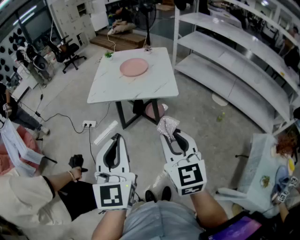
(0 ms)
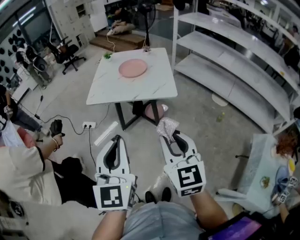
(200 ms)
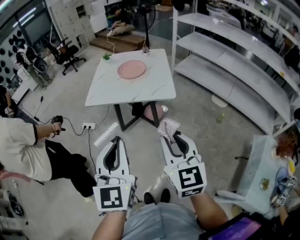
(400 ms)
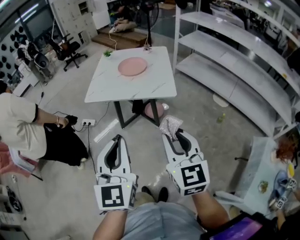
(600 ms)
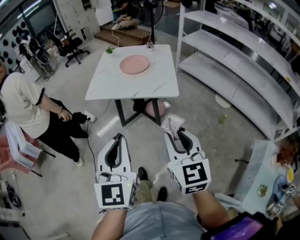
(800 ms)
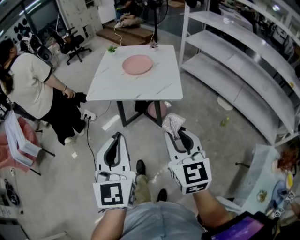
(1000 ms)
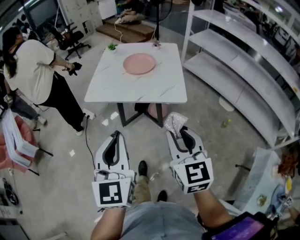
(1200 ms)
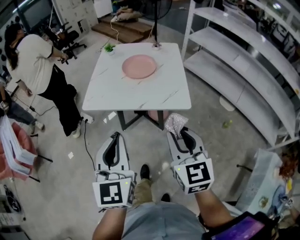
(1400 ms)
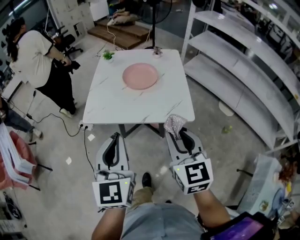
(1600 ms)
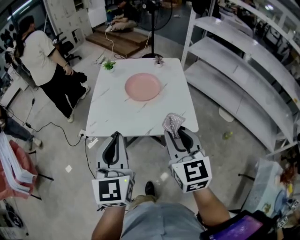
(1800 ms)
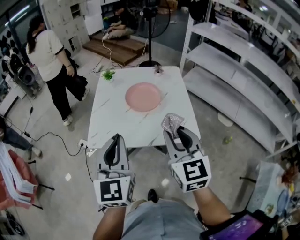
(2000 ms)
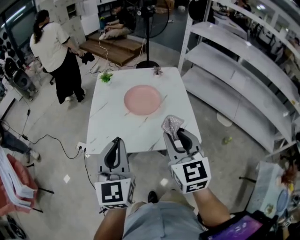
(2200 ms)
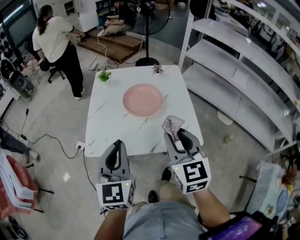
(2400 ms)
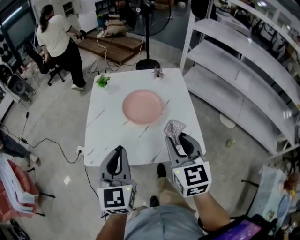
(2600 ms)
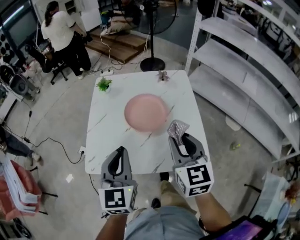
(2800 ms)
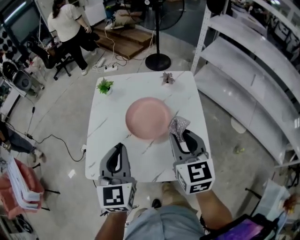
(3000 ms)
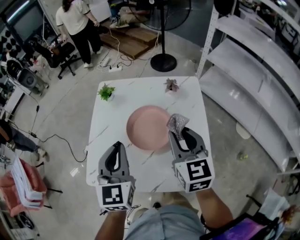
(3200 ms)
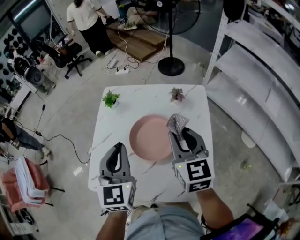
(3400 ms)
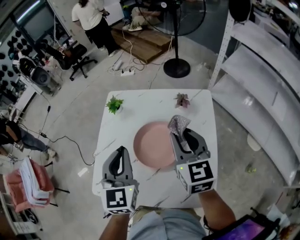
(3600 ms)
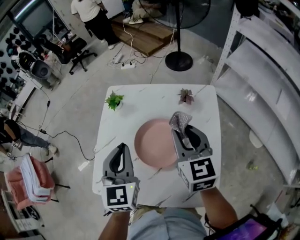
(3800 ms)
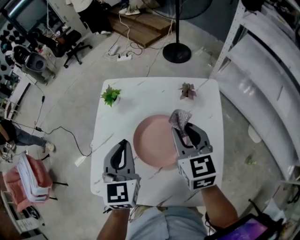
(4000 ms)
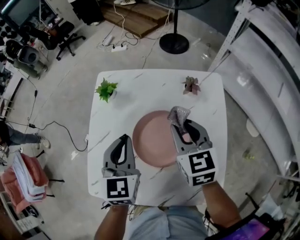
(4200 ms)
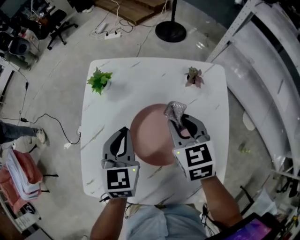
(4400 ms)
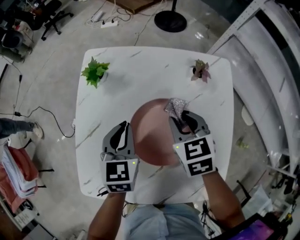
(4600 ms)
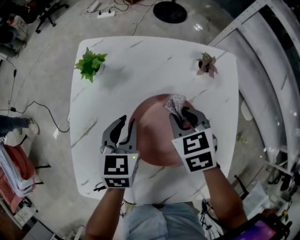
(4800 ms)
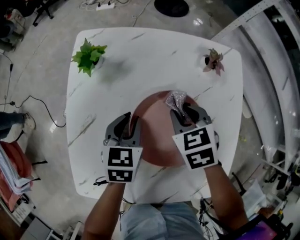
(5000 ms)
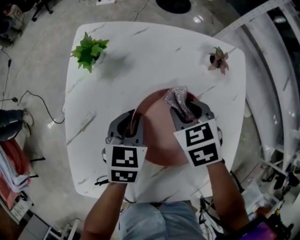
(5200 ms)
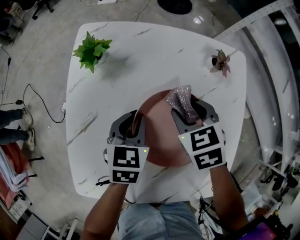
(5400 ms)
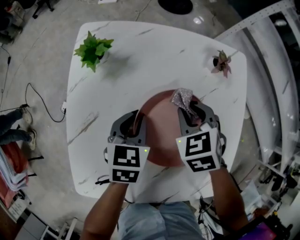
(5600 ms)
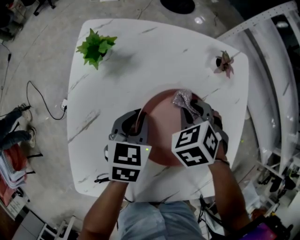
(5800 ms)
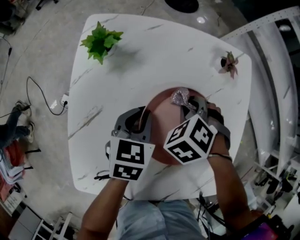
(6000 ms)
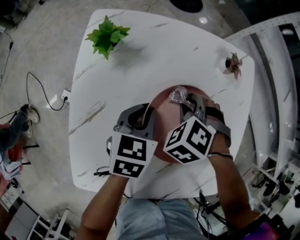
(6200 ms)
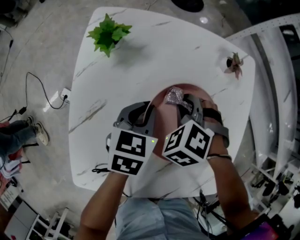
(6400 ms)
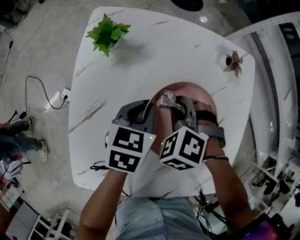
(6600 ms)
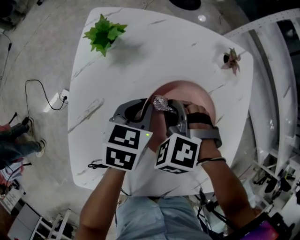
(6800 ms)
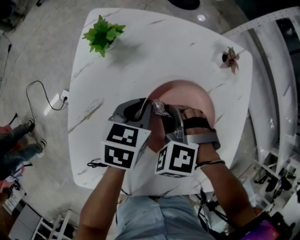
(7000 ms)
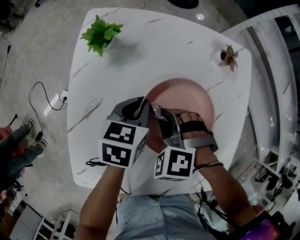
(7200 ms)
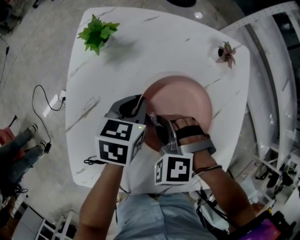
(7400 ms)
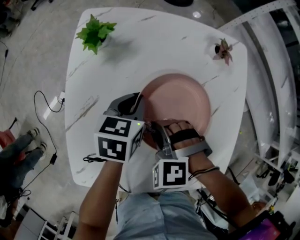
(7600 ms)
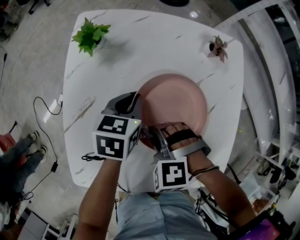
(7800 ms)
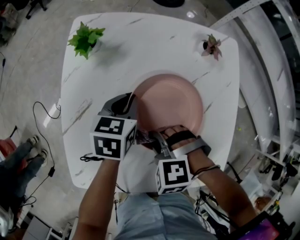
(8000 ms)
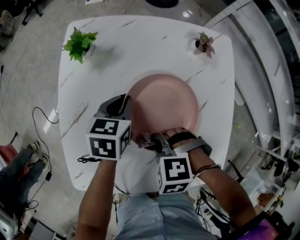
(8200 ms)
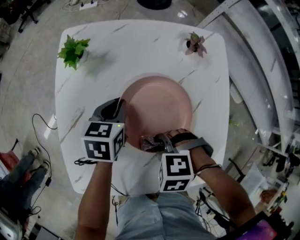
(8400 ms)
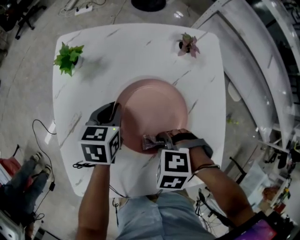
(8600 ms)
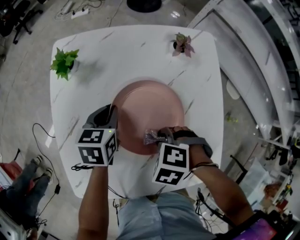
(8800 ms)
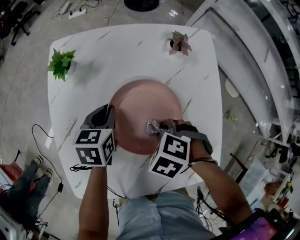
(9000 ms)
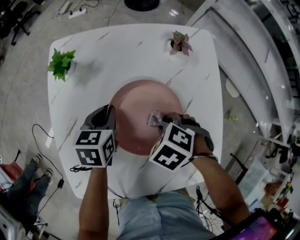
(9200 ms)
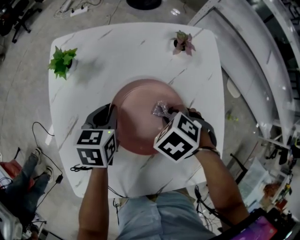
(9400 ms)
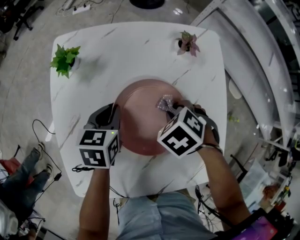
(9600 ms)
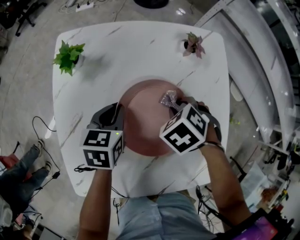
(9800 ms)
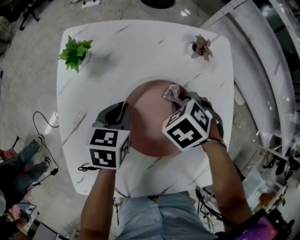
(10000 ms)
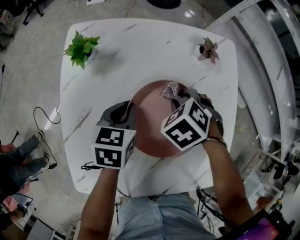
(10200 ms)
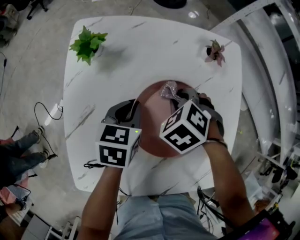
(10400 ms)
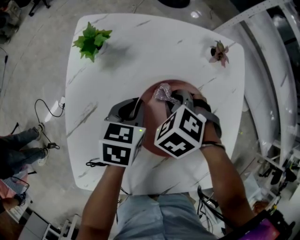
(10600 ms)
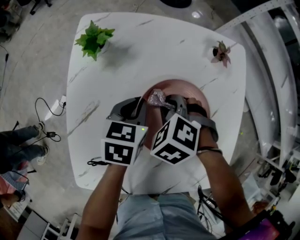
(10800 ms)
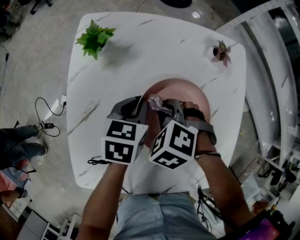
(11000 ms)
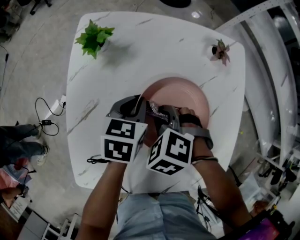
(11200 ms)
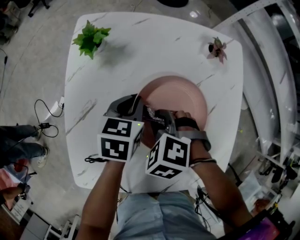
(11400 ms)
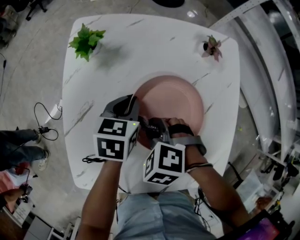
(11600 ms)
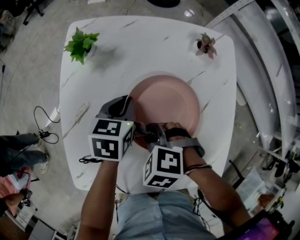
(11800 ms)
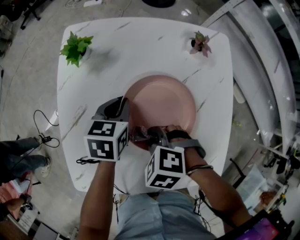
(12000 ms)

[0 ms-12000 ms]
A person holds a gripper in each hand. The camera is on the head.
0 ms to 1600 ms: The two grippers go about 25 cm forward.
1600 ms to 3000 ms: The grippers both shift forward by roughly 30 cm.
3000 ms to 4400 ms: Both grippers travel together forward and downward, approximately 25 cm. The right gripper rotates approximately 20 degrees.
4400 ms to 6000 ms: Both grippers move downward, some 15 cm. The right gripper angles its fingers downward, by about 30 degrees, and opens, then closes again; the left gripper turns by about 30 degrees.
6000 ms to 7600 ms: The right gripper heads backward and to the left, covering some 15 cm, and rotates roughly 40 degrees.
7600 ms to 9000 ms: The right gripper moves some 10 cm, and changes its angle by approximately 40 degrees.
9000 ms to 10400 ms: The right gripper changes place by roughly 10 cm.
10400 ms to 12000 ms: The right gripper shifts by roughly 15 cm, and changes its angle by some 20 degrees.

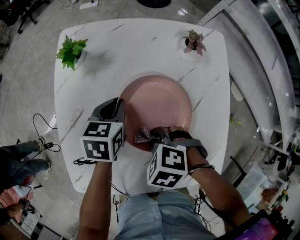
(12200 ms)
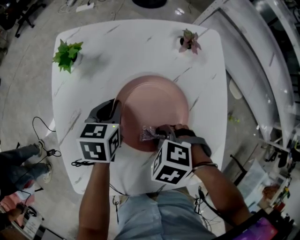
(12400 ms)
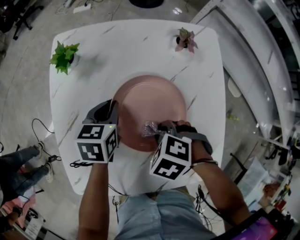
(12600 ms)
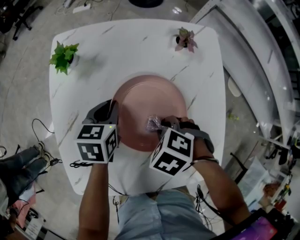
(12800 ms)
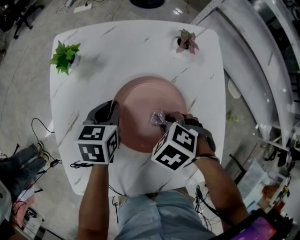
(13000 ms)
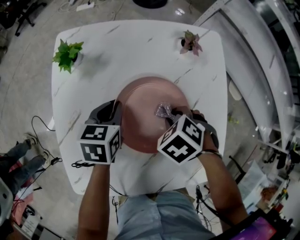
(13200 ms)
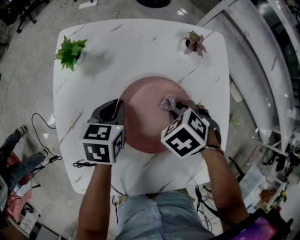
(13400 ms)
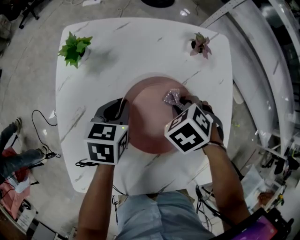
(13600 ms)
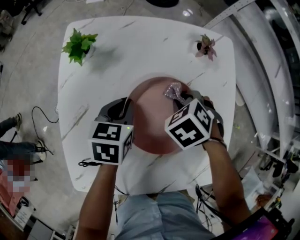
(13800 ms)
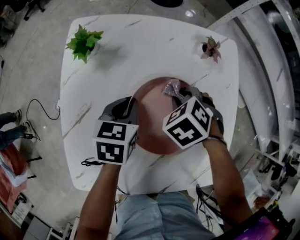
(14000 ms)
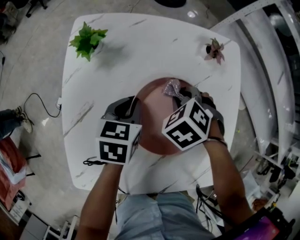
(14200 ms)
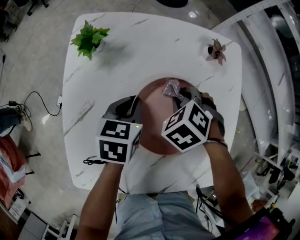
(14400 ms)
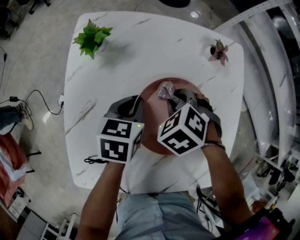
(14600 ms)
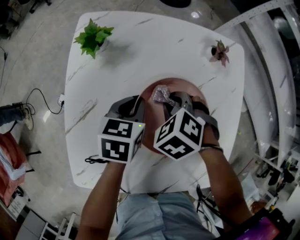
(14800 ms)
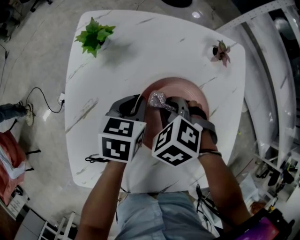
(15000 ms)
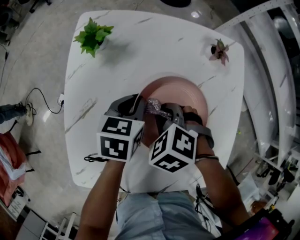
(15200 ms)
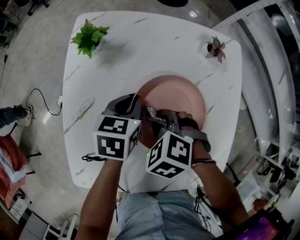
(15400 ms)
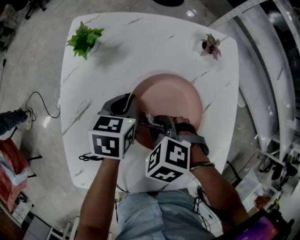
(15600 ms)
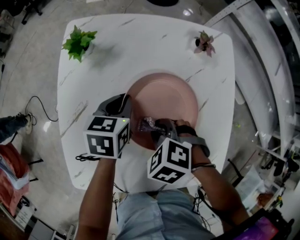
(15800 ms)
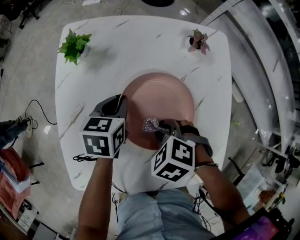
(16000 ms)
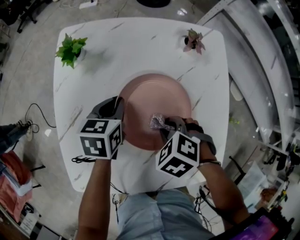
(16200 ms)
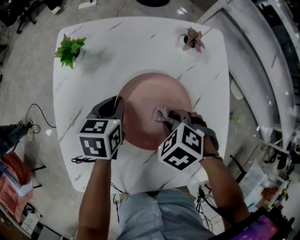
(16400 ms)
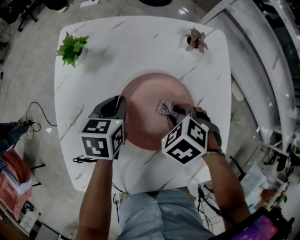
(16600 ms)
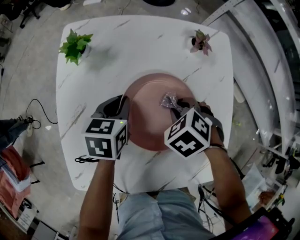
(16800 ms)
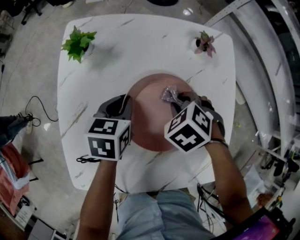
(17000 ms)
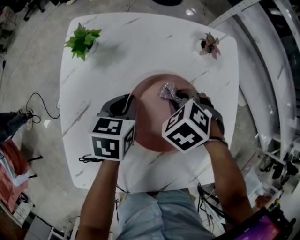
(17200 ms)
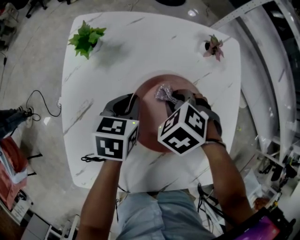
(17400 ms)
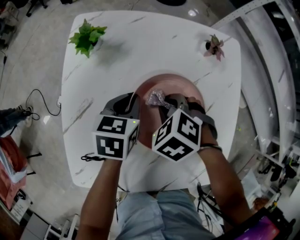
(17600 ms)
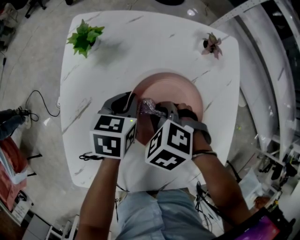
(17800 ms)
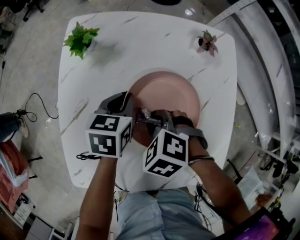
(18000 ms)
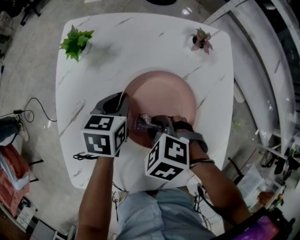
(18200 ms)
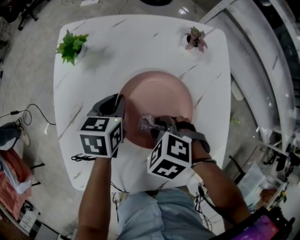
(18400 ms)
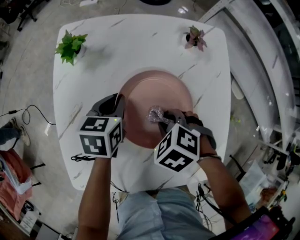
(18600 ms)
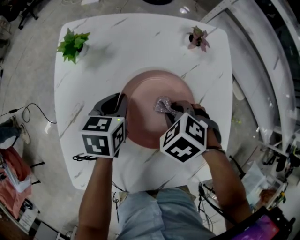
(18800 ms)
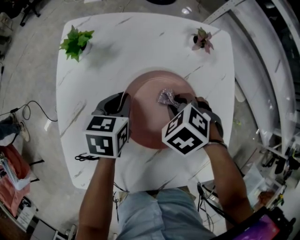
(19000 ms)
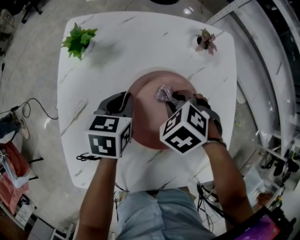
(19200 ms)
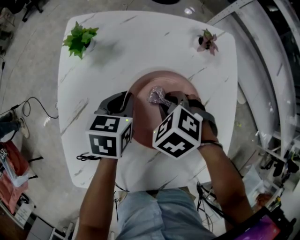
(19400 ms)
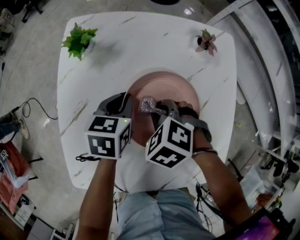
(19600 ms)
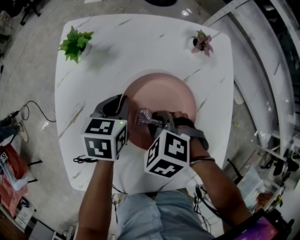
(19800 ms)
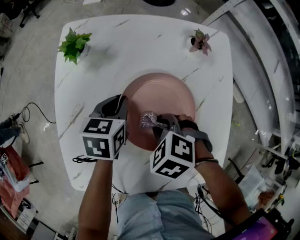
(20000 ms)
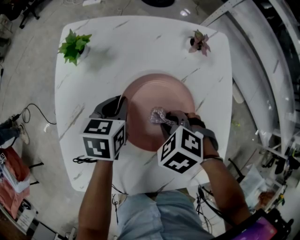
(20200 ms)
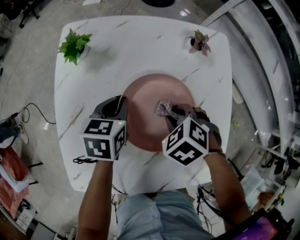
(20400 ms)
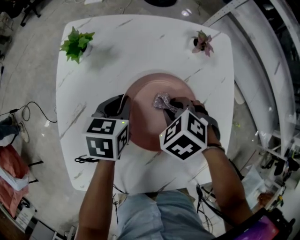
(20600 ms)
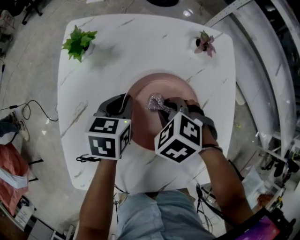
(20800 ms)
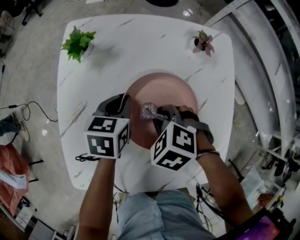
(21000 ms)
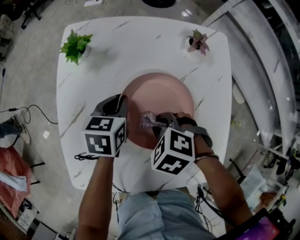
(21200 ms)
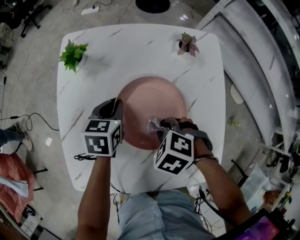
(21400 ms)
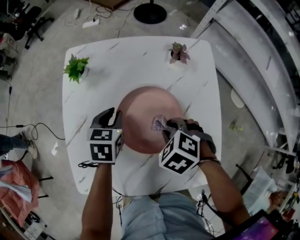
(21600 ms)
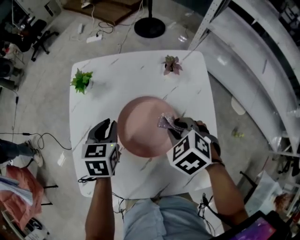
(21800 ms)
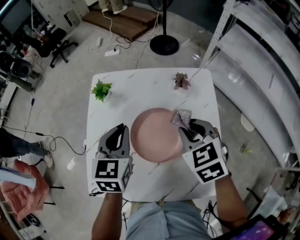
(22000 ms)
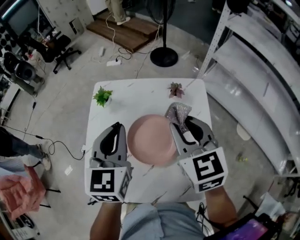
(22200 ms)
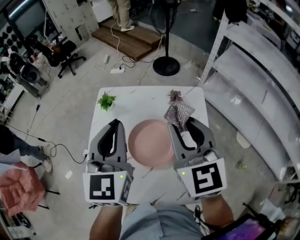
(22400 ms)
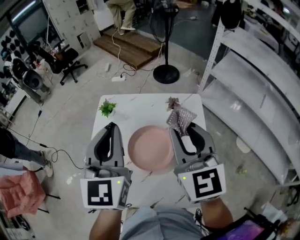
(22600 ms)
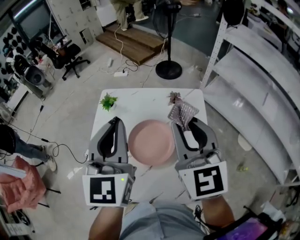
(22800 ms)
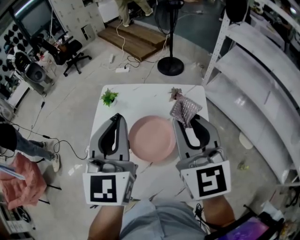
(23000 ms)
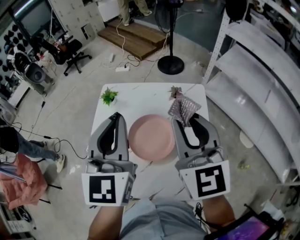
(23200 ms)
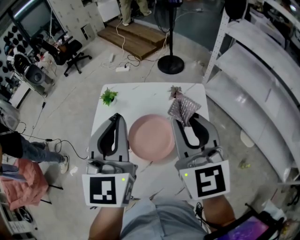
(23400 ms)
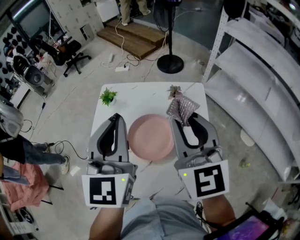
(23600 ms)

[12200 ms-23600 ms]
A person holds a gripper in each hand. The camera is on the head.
12200 ms to 13600 ms: The right gripper ends up about 15 cm from where it was, and turns by roughly 30 degrees.
13600 ms to 15000 ms: The right gripper ends up roughly 10 cm from where it was.
15000 ms to 16400 ms: The right gripper shifts by some 10 cm.
16400 ms to 17800 ms: The right gripper ends up about 10 cm from where it was.
20800 ms to 22200 ms: Both grippers travel together upward, roughly 30 cm. The right gripper points its fingers roughly 50 degrees further upward. The left gripper points its fingers some 30 degrees further upward.
22200 ms to 23600 ms: The grippers both shift upward and backward by roughly 10 cm.

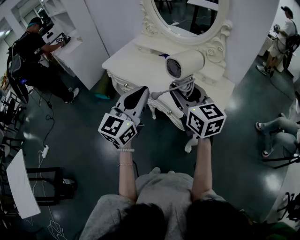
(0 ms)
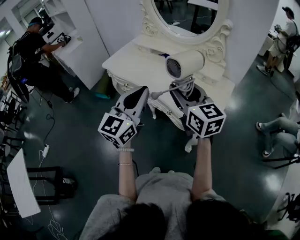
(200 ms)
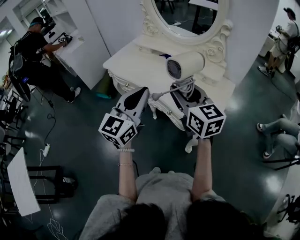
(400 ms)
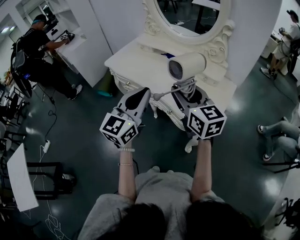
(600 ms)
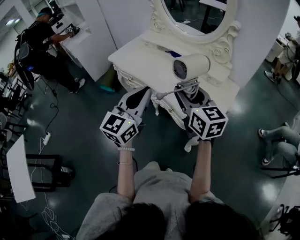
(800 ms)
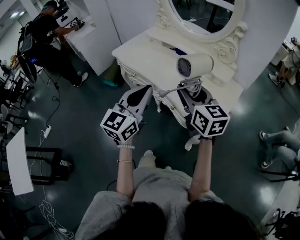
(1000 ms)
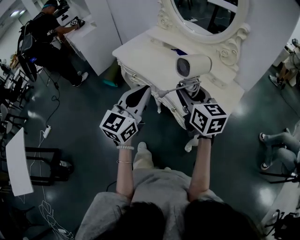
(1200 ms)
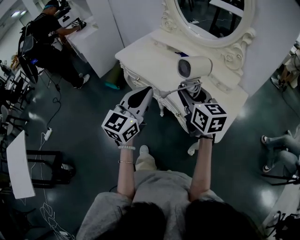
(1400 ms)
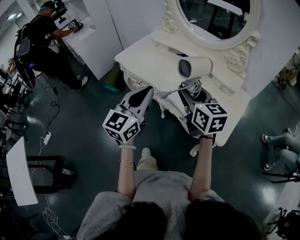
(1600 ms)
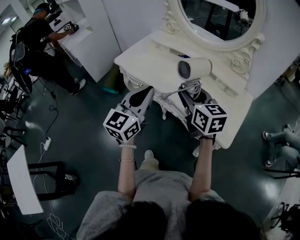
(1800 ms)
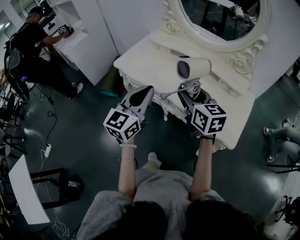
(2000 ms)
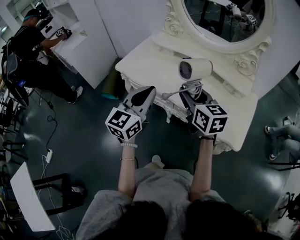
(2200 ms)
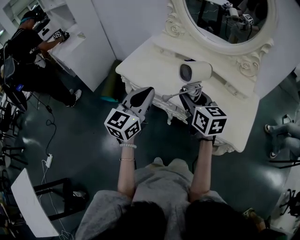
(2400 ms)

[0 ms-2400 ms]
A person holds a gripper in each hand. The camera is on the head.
0 ms to 1200 ms: There are only small adjustments of the grippers.
1200 ms to 2400 ms: Both grippers travel together to the left and forward, about 20 cm.
